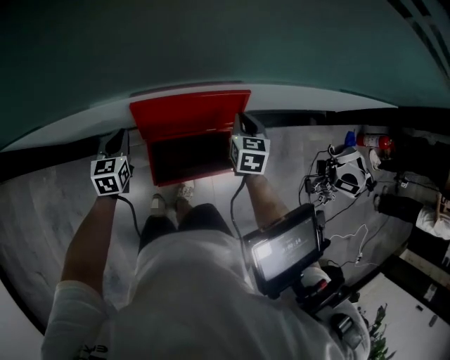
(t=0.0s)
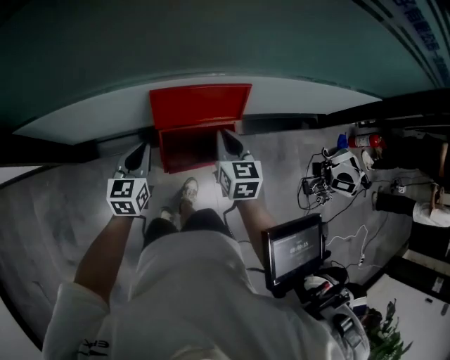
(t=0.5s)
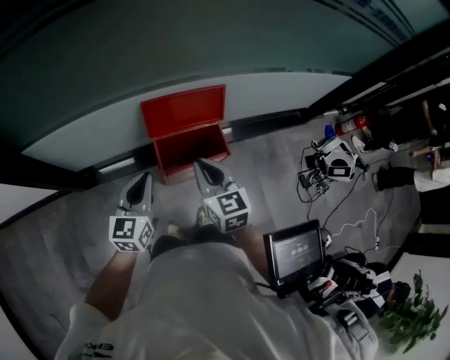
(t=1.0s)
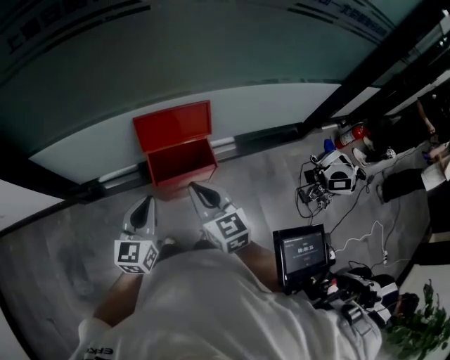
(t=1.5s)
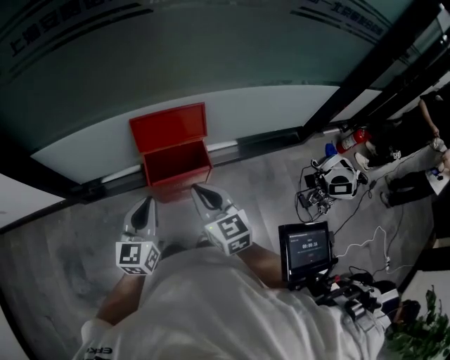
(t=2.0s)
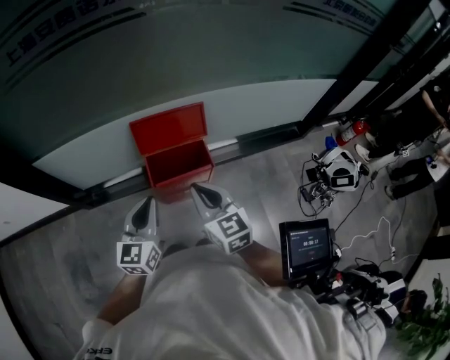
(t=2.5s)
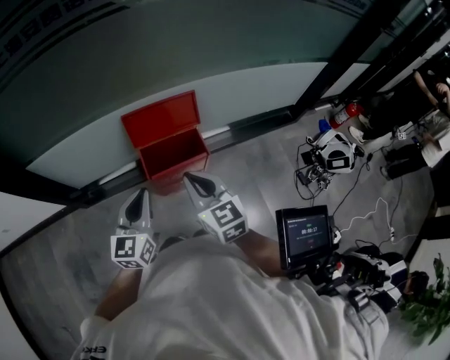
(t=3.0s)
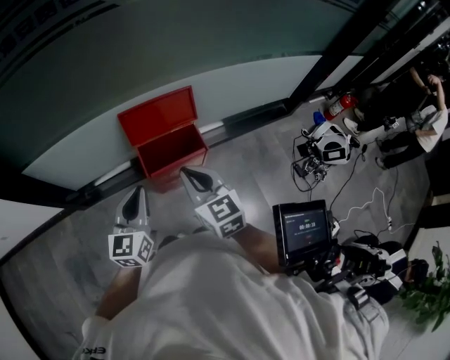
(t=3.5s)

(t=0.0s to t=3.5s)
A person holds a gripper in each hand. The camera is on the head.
t=0.0s - t=2.0s: The left gripper moves backward, upward and to the right, approximately 50 cm, and swivels approximately 30 degrees; the right gripper goes some 50 cm backward and upward, and turns by about 30 degrees.
t=2.0s - t=3.5s: There are only small adjustments of the grippers.

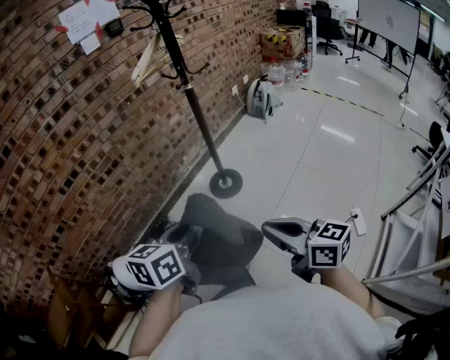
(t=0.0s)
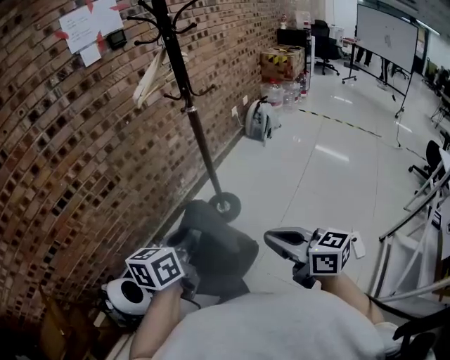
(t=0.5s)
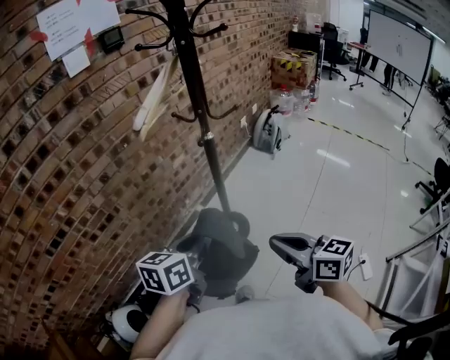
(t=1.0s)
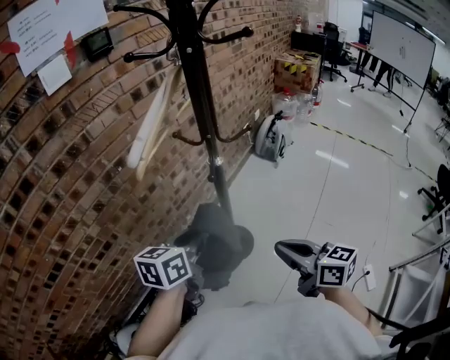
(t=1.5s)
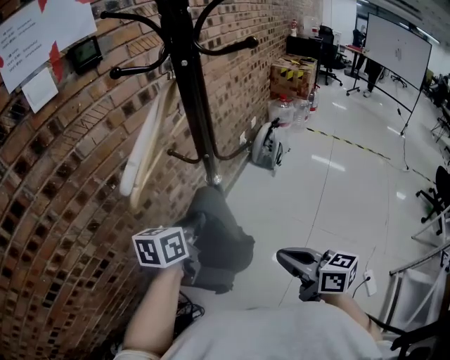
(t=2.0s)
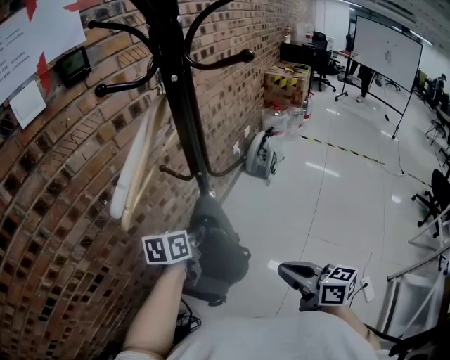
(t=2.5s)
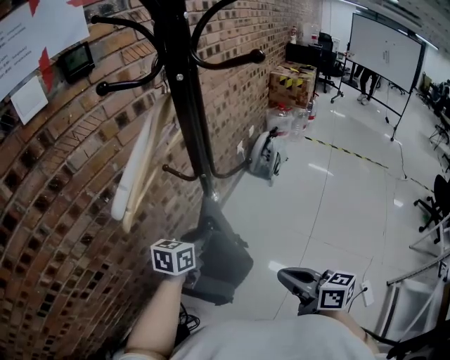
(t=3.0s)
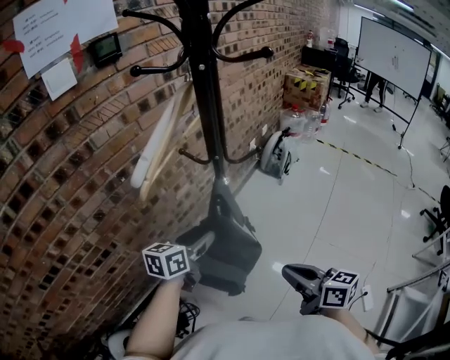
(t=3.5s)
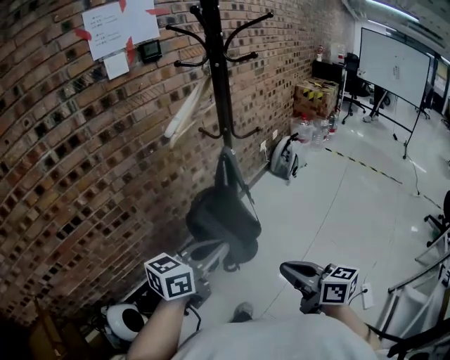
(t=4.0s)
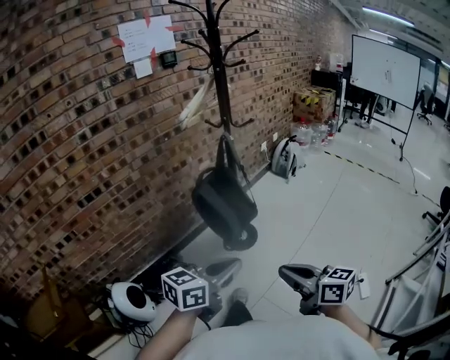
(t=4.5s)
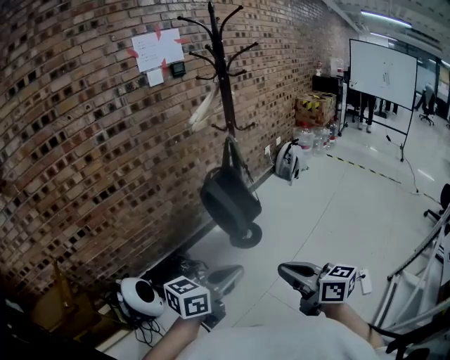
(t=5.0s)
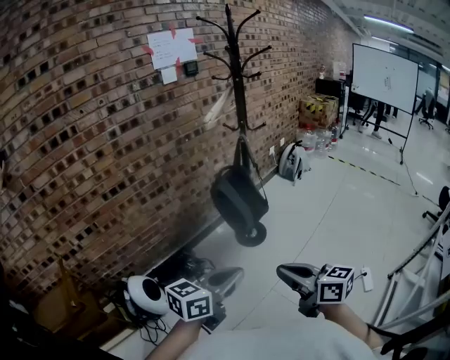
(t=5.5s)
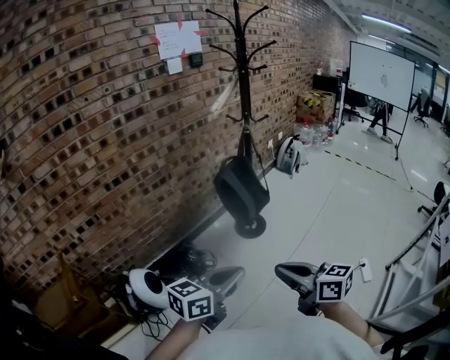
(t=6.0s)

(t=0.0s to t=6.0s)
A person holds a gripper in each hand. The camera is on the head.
t=0.0s - t=2.0s: The two grippers travel together, forward, roughly 50 cm.
t=2.0s - t=4.0s: The grippers both shift backward by approximately 25 cm. The left gripper opens and closes again.
t=4.0s - t=6.0s: Both grippers move backward, roughly 35 cm.

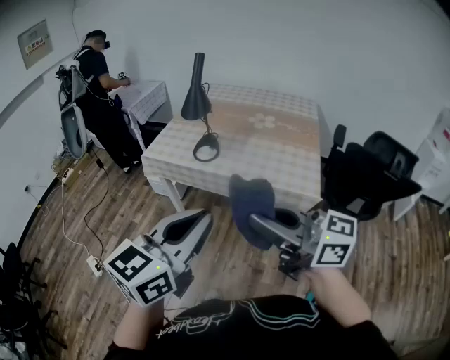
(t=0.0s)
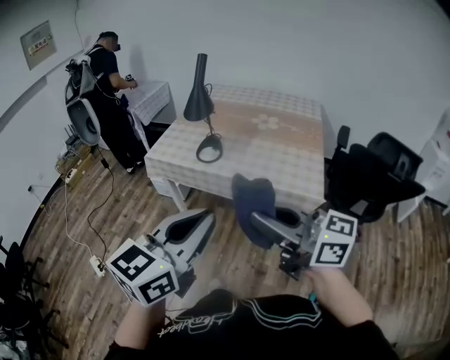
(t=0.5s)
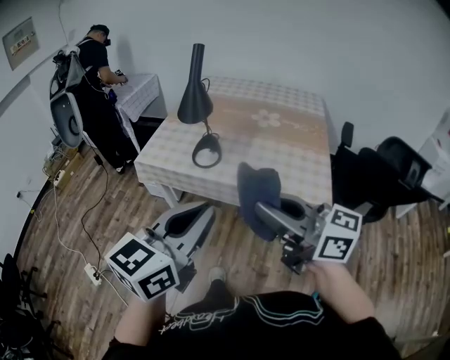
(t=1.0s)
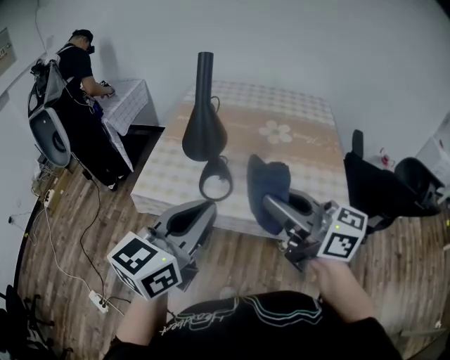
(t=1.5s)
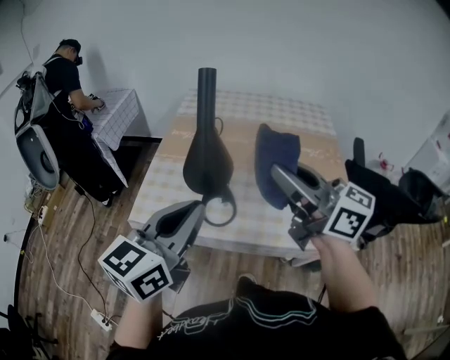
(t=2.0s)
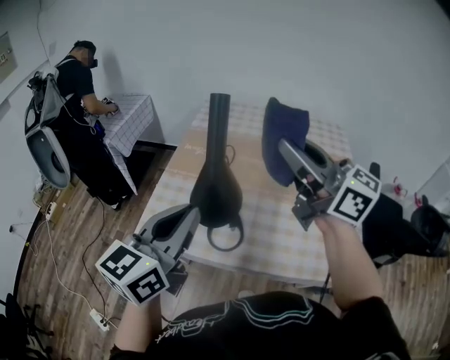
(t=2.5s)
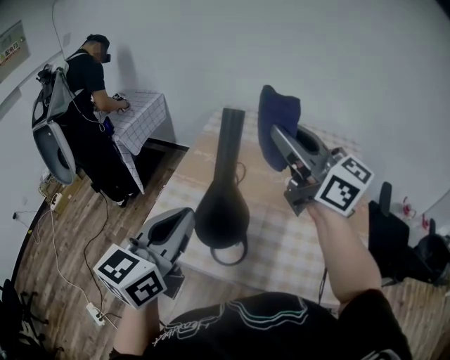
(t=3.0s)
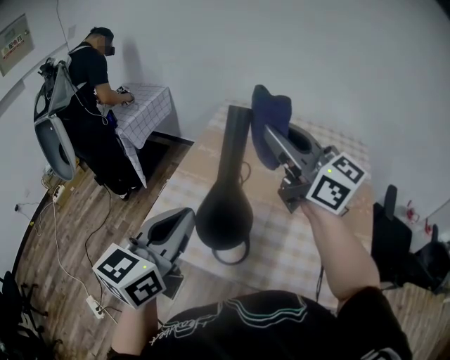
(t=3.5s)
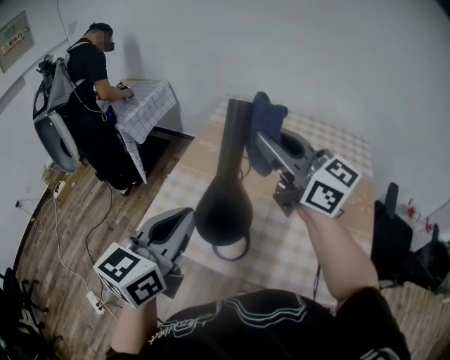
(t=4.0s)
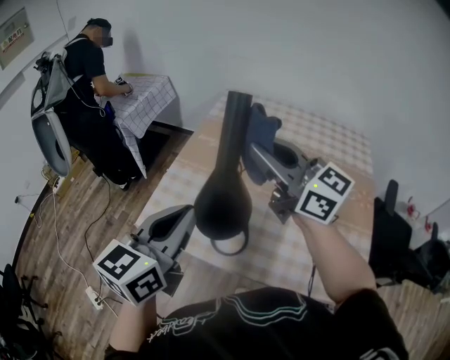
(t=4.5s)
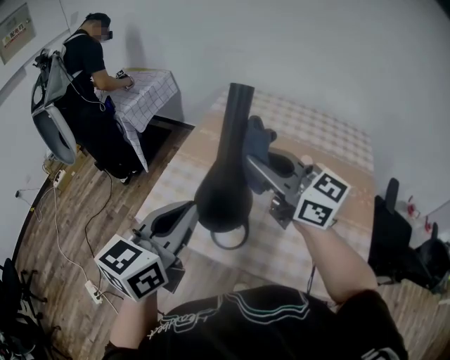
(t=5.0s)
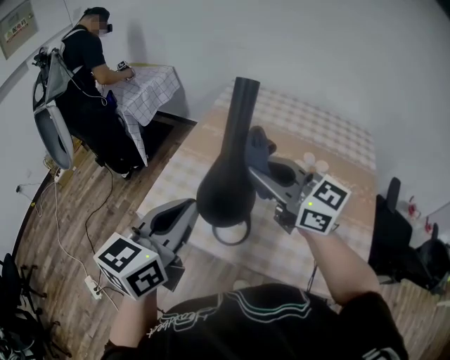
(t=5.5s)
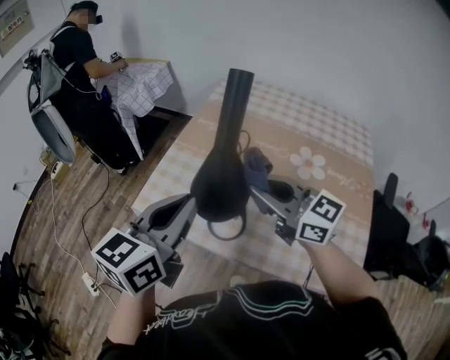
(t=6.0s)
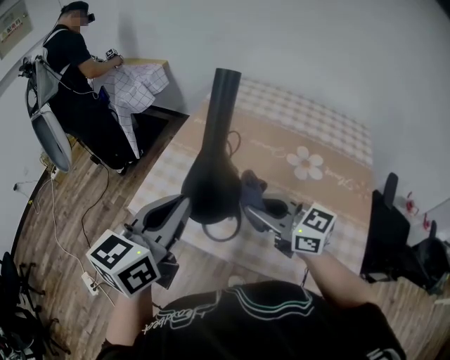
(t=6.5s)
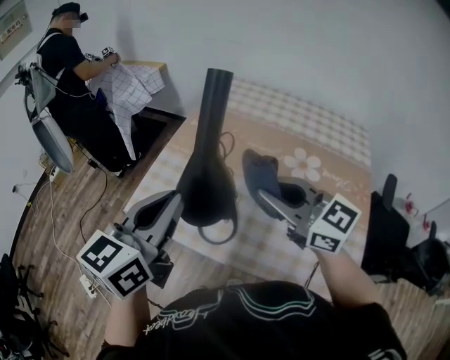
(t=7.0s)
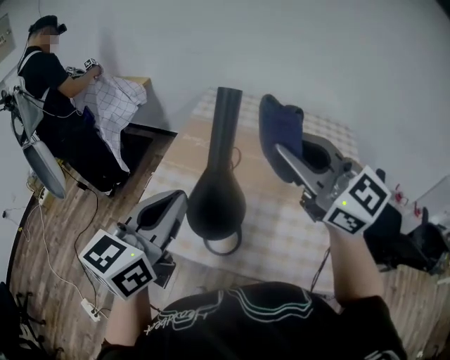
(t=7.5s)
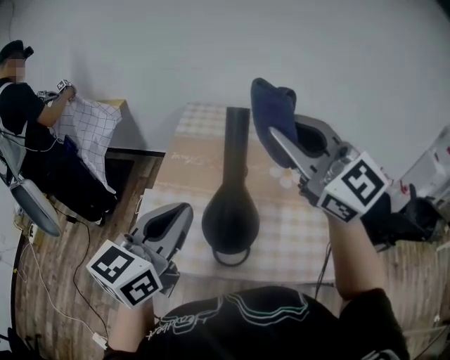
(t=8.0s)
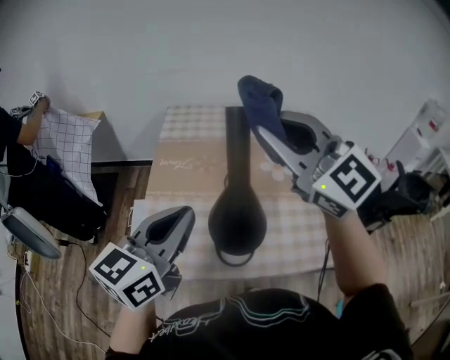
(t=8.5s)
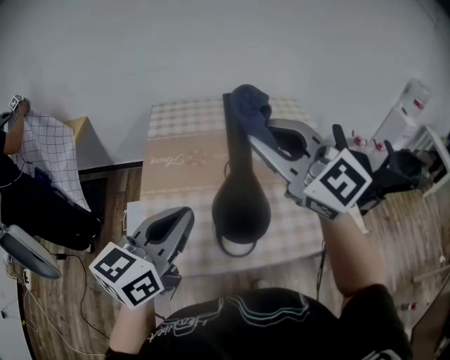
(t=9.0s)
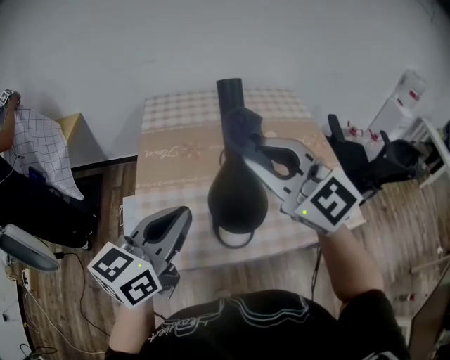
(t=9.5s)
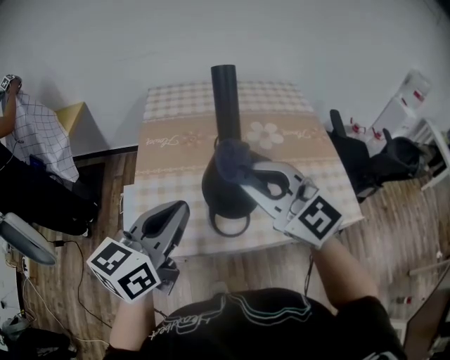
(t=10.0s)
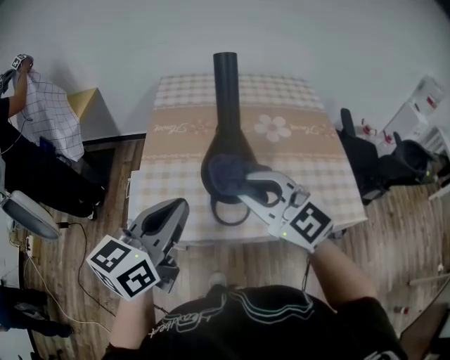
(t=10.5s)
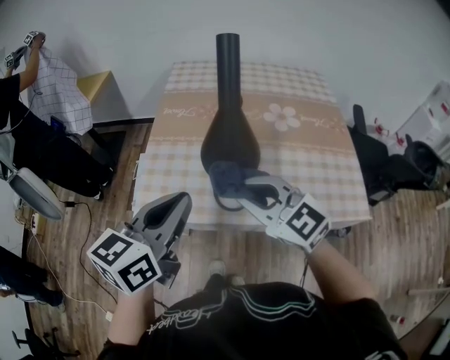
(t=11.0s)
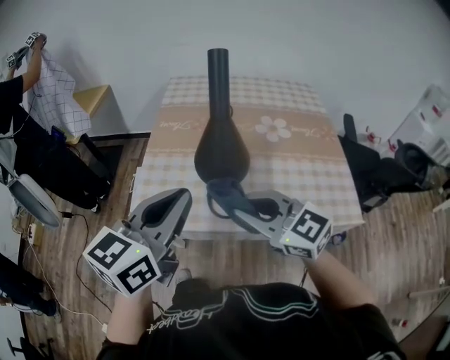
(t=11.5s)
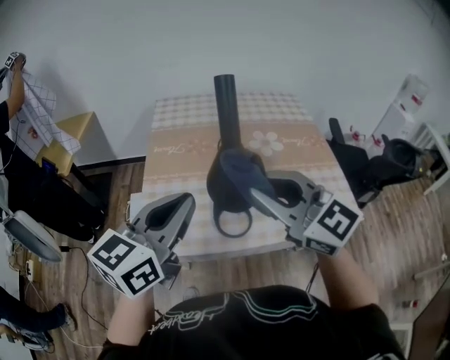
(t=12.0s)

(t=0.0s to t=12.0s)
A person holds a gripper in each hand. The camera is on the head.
t=0.0s - t=2.0s: Both grippers are carried forward, roughly 50 cm. The right gripper changes its angle by some 20 degrees.
t=2.0s - t=4.0s: The right gripper travels forward by approximately 25 cm. Meanwhile the left gripper heads forward, covering some 15 cm.
t=4.0s - t=6.0s: The right gripper heads downward and backward, covering roughly 15 cm.
t=6.0s - t=8.0s: The right gripper shifts approximately 20 cm upward, and changes its angle by roughly 40 degrees. The left gripper shifts approximately 10 cm forward.
t=8.0s - t=10.0s: The left gripper heads downward, covering approximately 5 cm; the right gripper travels downward and backward by roughly 20 cm.
t=10.0s - t=12.0s: The right gripper travels backward by some 5 cm, and travels downward and back again, some 10 cm each way.

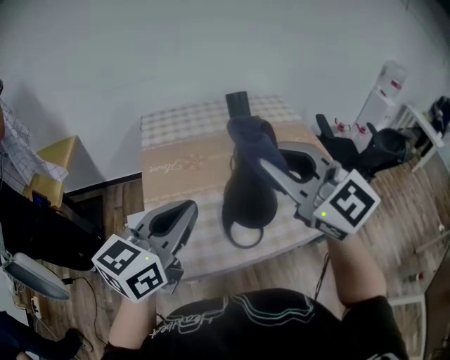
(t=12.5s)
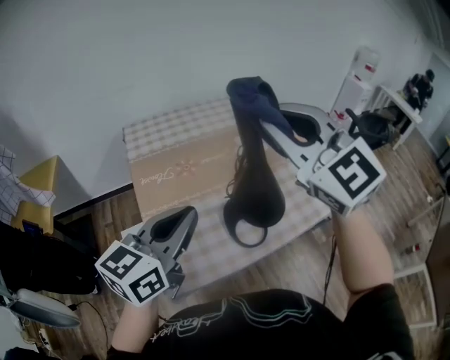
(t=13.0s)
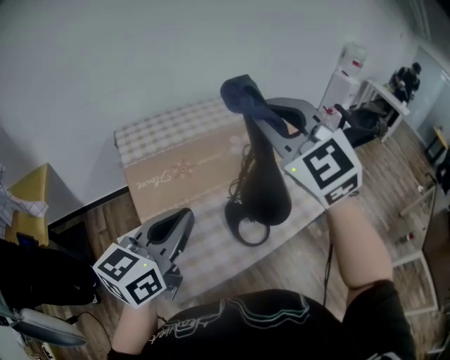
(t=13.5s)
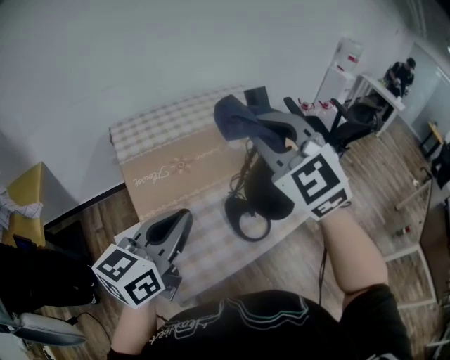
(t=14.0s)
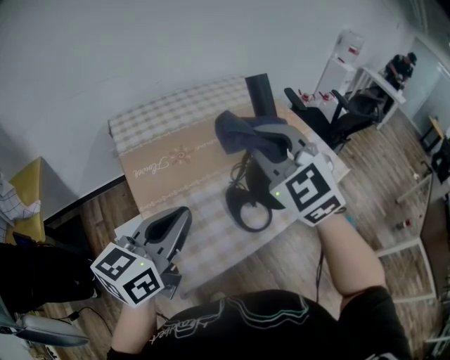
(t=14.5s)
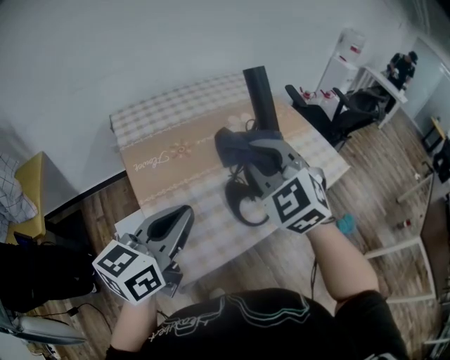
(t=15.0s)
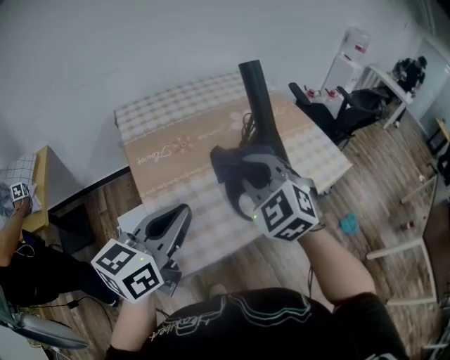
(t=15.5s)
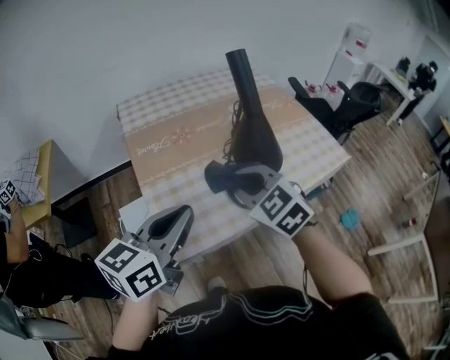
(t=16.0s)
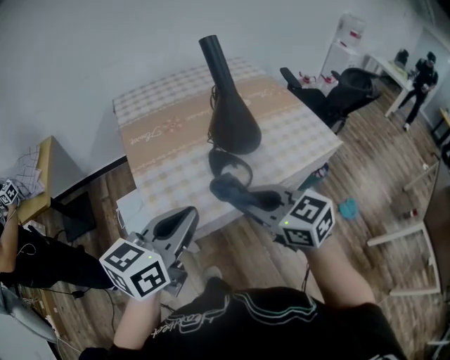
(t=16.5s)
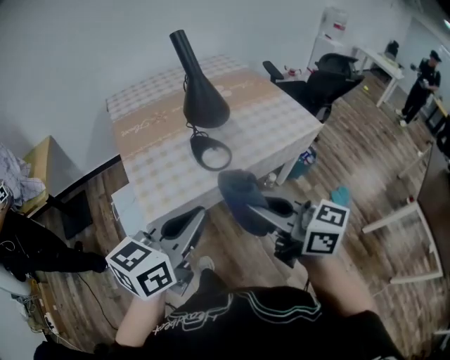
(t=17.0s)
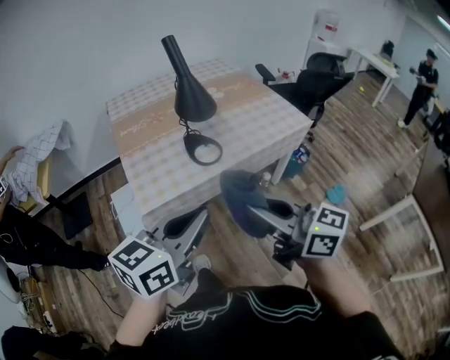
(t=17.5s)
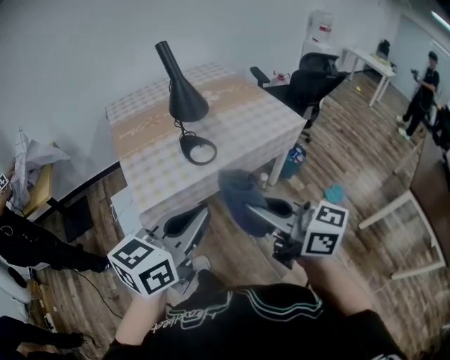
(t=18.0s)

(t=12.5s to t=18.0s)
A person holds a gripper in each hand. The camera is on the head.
t=12.5s - t=14.5s: The left gripper goes some 10 cm to the left. Meanwhile the right gripper moves to the left, downward and forward, roughly 10 cm, and rotates about 40 degrees.
t=14.5s - t=16.0s: The left gripper shifts approximately 10 cm backward. Meanwhile the right gripper is displaced downward and backward by some 15 cm, and turns by roughly 20 degrees.
t=16.0s - t=18.0s: Both grippers travel together backward and to the right, approximately 35 cm. The right gripper tilts its fingers roughly 40 degrees upward.
